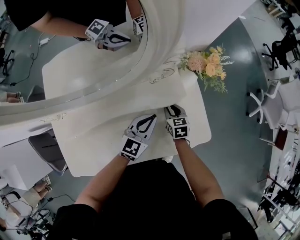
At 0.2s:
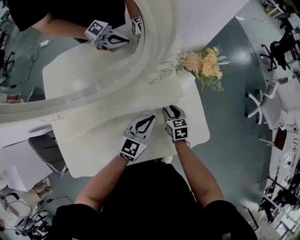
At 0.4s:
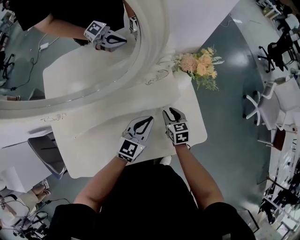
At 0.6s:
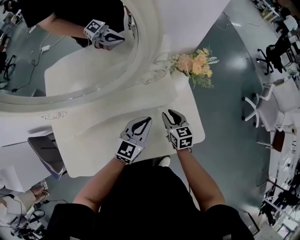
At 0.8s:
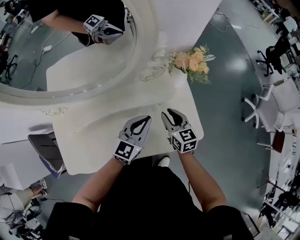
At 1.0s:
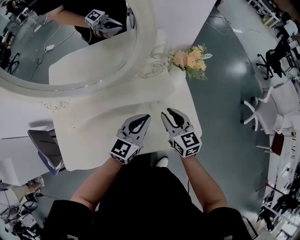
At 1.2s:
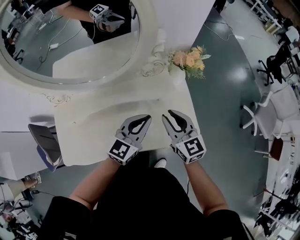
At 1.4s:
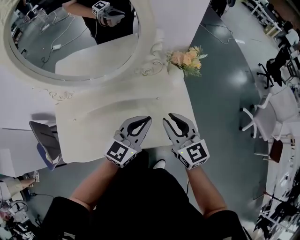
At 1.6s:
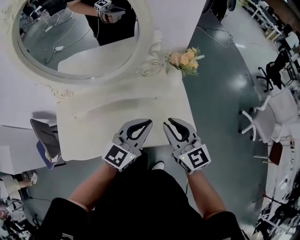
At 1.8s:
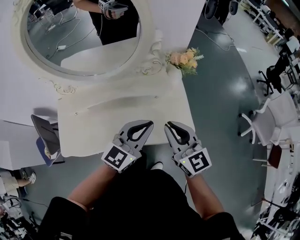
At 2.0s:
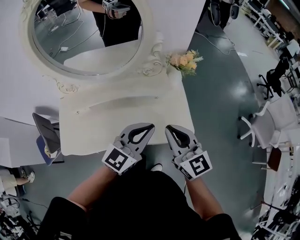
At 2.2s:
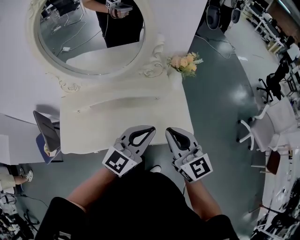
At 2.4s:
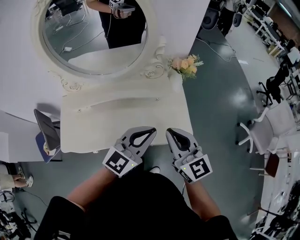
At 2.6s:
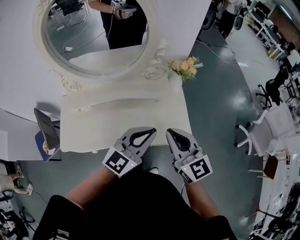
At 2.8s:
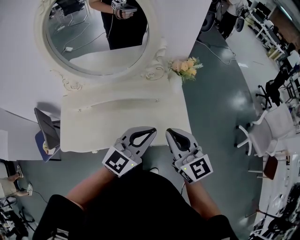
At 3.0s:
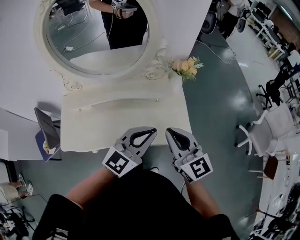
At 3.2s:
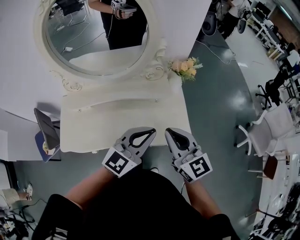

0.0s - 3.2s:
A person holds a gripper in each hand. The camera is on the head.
0.0s - 1.6s: The left gripper goes roughly 25 cm upward and backward. Meanwhile the right gripper moves upward and backward, roughly 40 cm, and angles its fingers upward, by roughly 40 degrees.
1.6s - 3.2s: The two grippers go approximately 10 cm backward and upward.

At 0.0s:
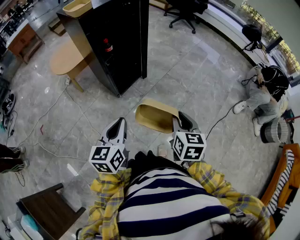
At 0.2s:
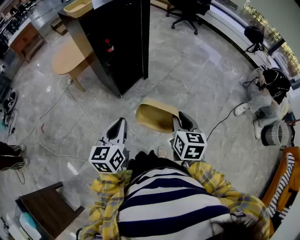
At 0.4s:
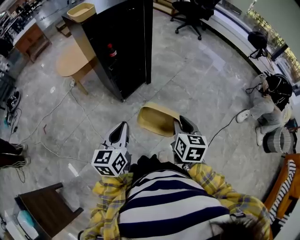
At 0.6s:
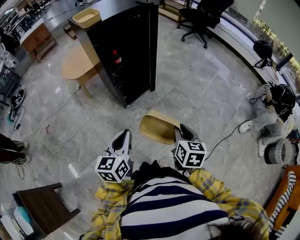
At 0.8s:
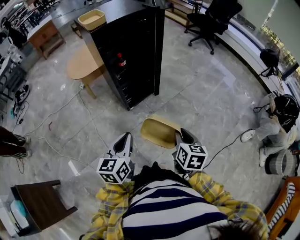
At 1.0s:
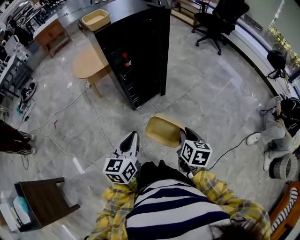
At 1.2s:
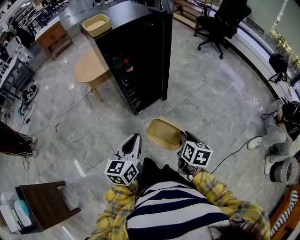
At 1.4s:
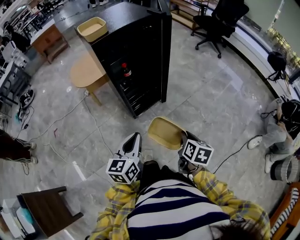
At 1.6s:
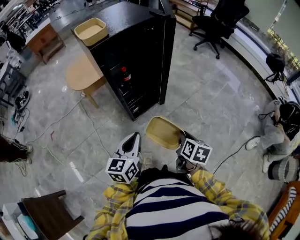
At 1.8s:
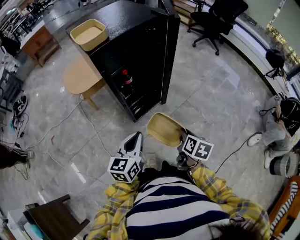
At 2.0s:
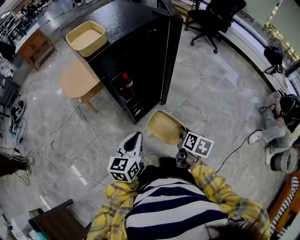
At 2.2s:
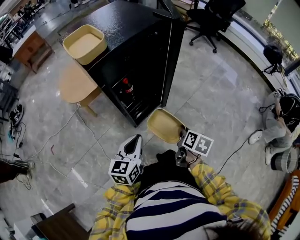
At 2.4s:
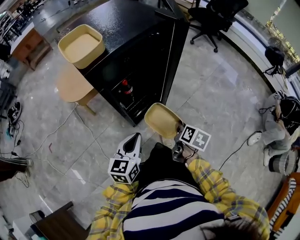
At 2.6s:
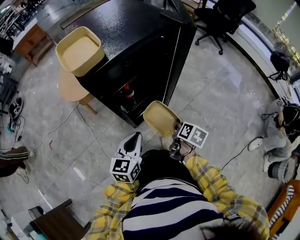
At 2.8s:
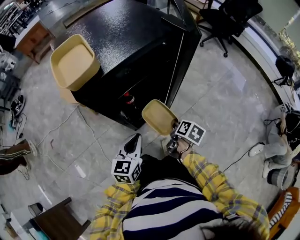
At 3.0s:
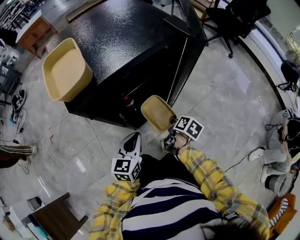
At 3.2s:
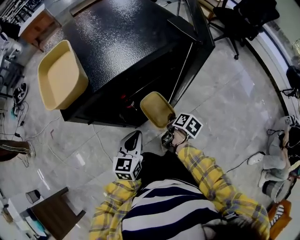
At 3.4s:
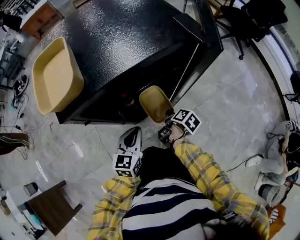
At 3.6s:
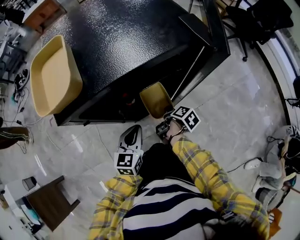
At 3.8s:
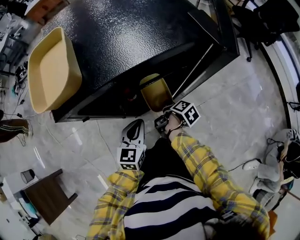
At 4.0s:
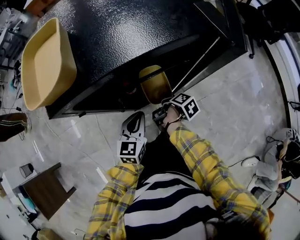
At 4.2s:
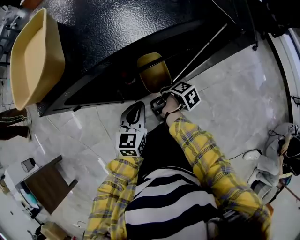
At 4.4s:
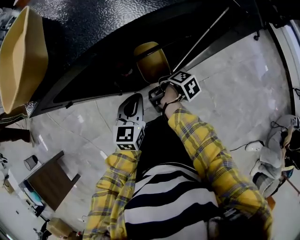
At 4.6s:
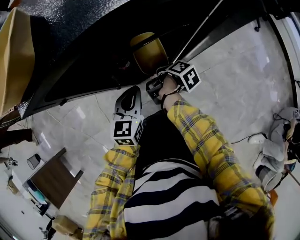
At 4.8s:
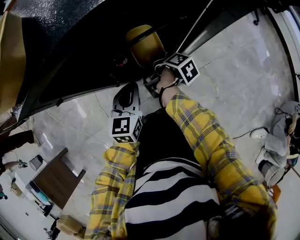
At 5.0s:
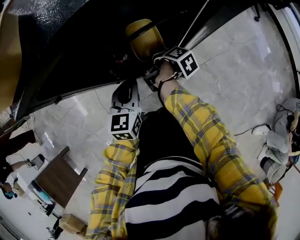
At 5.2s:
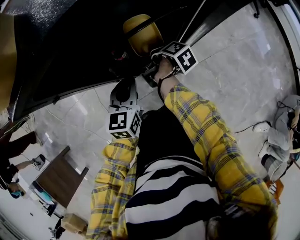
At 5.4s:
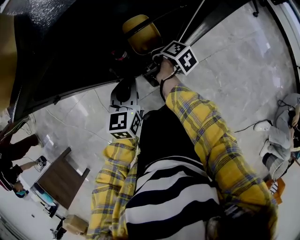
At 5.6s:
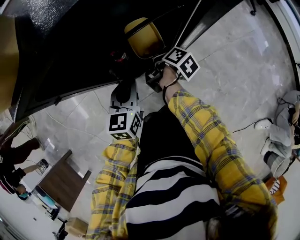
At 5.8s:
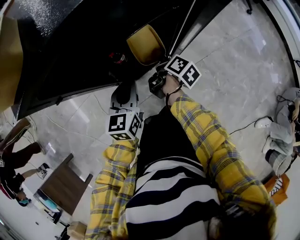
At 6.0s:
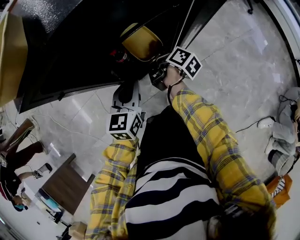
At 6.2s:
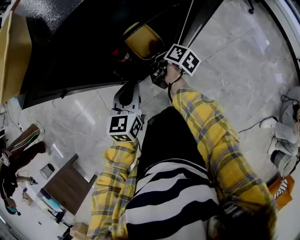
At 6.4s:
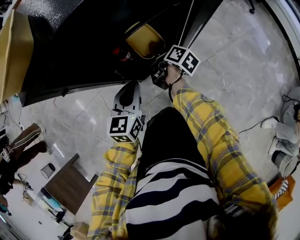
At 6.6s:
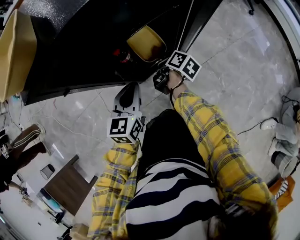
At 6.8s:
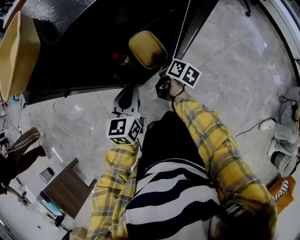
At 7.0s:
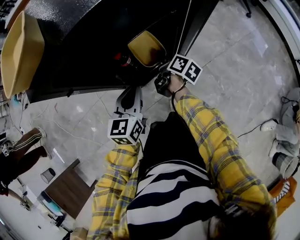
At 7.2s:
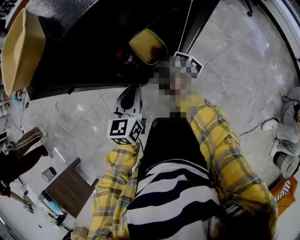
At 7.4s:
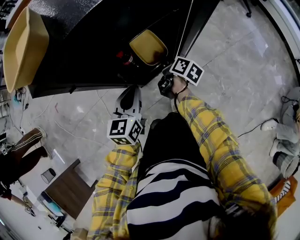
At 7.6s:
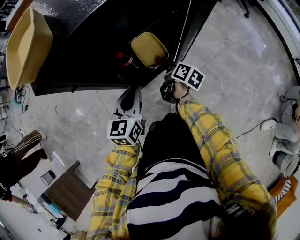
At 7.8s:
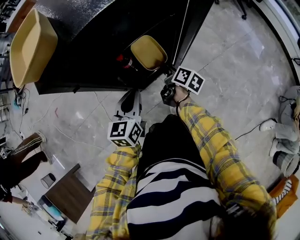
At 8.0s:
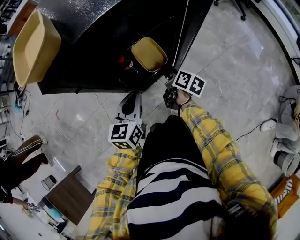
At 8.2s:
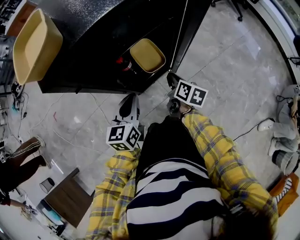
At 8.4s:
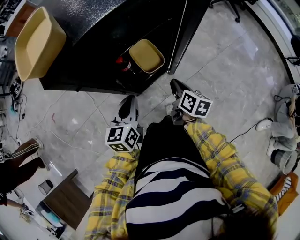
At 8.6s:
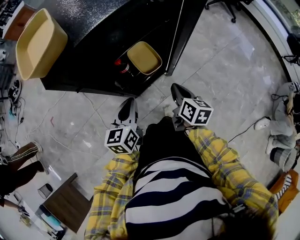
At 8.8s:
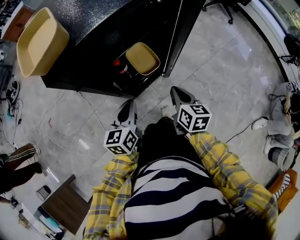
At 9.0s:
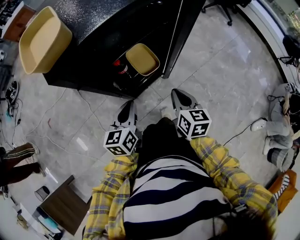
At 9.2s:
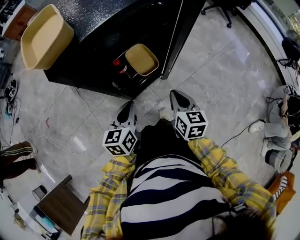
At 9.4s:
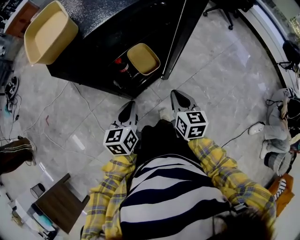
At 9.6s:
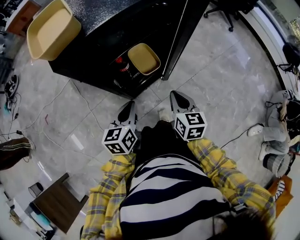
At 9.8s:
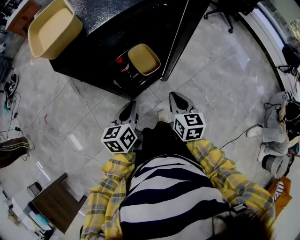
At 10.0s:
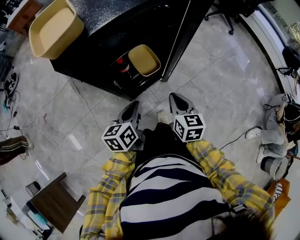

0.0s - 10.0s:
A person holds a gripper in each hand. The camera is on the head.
0.0s - 1.4s: The left gripper moves forward, about 10 cm; the right gripper heads forward and downward, covering some 15 cm, and swivels some 20 degrees.
1.4s - 2.8s: The grippers both shift forward by roughly 20 cm. The right gripper changes its angle by approximately 20 degrees.
2.8s - 4.2s: The left gripper travels forward and downward by roughly 10 cm, while the right gripper goes some 15 cm forward, to the left and downward, and swivels approximately 20 degrees.
4.2s - 5.8s: The grippers move only a little.
5.8s - 7.2s: The grippers stay close to where they were, moving slightly.
7.2s - 8.6s: The right gripper goes roughly 15 cm backward and upward, changes its angle by approximately 30 degrees, and closes its fingers.
8.6s - 10.0s: The right gripper changes place by approximately 5 cm, and swivels roughly 30 degrees.

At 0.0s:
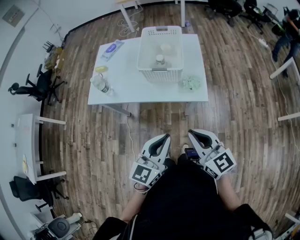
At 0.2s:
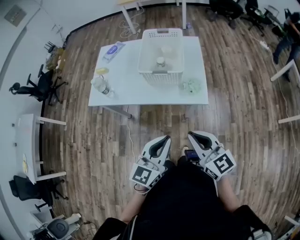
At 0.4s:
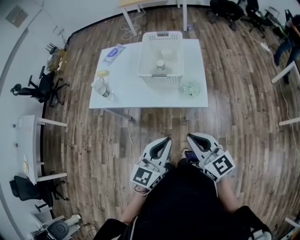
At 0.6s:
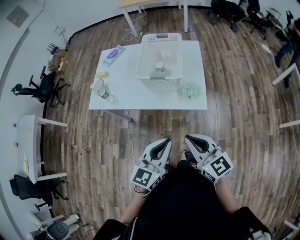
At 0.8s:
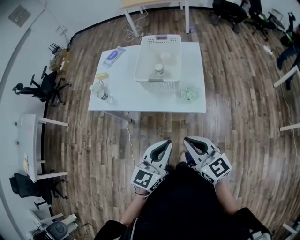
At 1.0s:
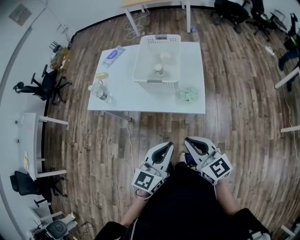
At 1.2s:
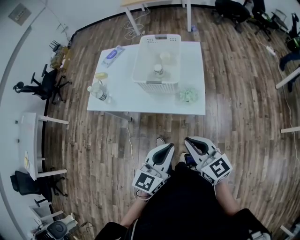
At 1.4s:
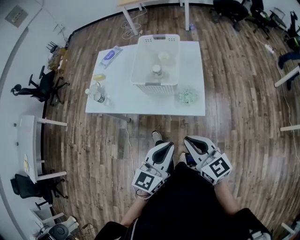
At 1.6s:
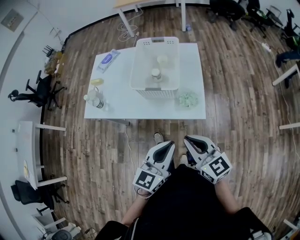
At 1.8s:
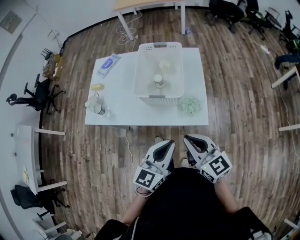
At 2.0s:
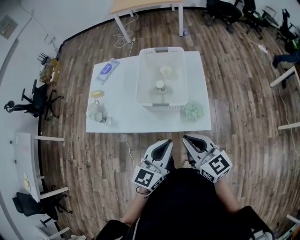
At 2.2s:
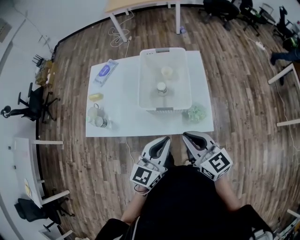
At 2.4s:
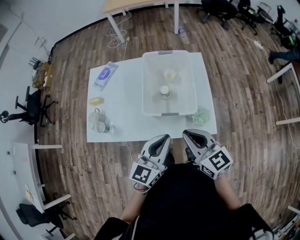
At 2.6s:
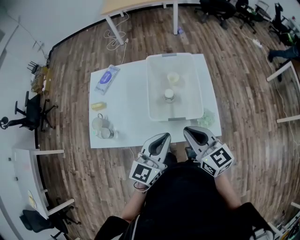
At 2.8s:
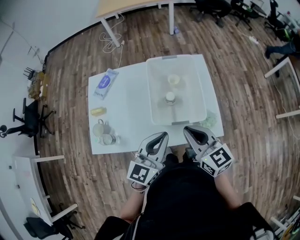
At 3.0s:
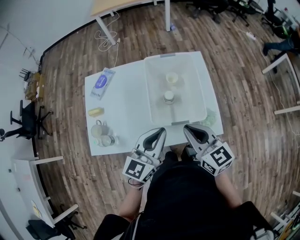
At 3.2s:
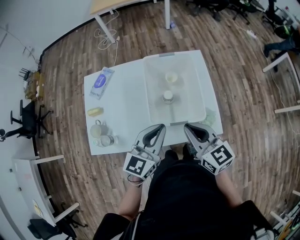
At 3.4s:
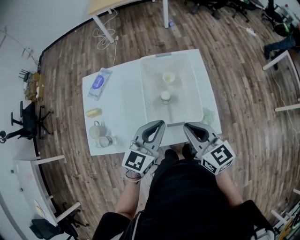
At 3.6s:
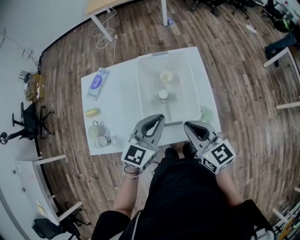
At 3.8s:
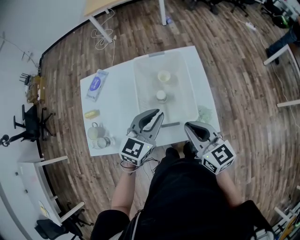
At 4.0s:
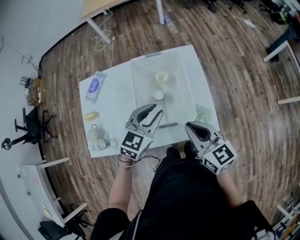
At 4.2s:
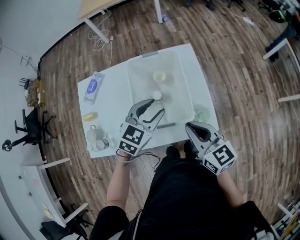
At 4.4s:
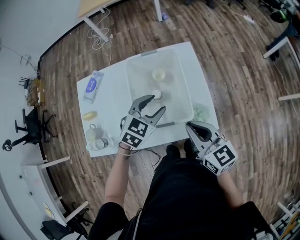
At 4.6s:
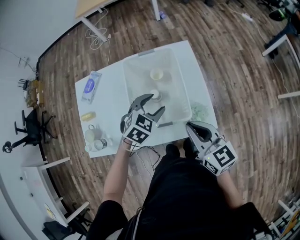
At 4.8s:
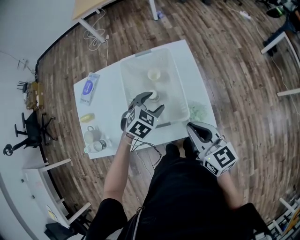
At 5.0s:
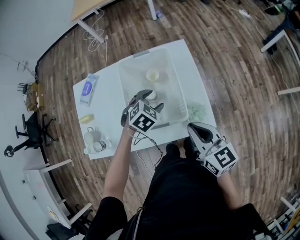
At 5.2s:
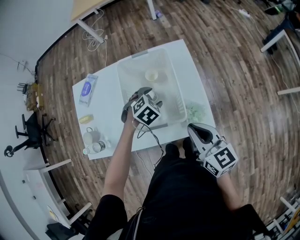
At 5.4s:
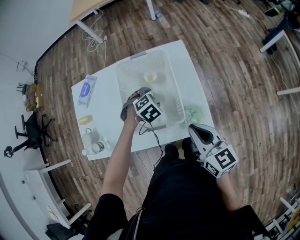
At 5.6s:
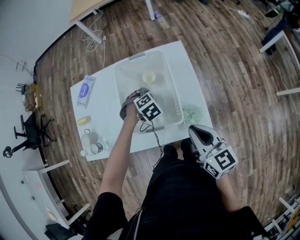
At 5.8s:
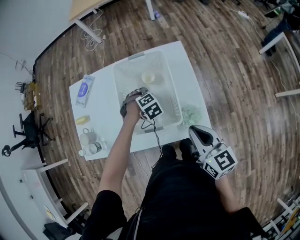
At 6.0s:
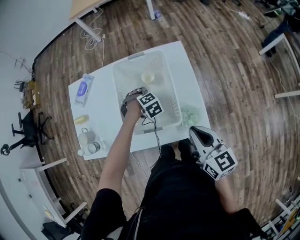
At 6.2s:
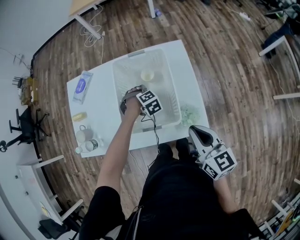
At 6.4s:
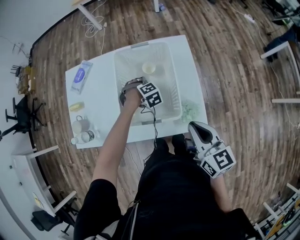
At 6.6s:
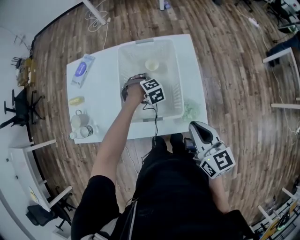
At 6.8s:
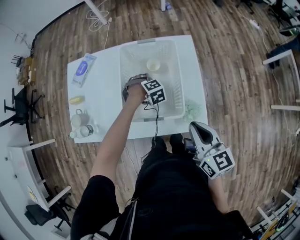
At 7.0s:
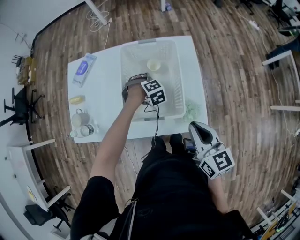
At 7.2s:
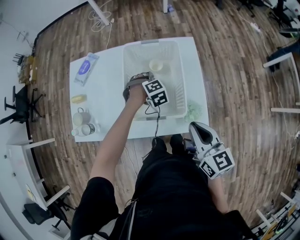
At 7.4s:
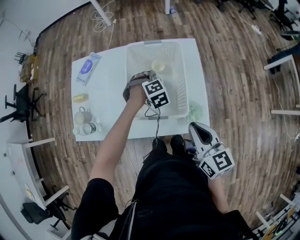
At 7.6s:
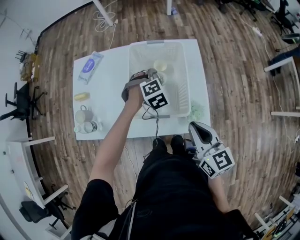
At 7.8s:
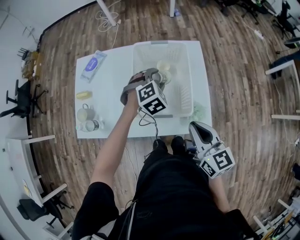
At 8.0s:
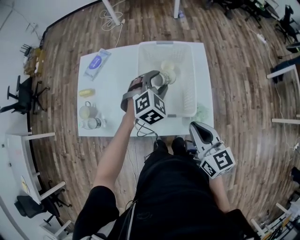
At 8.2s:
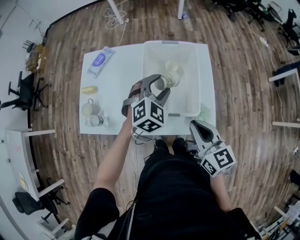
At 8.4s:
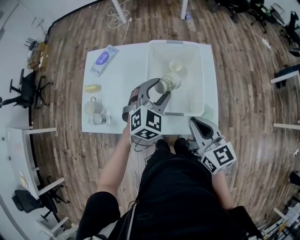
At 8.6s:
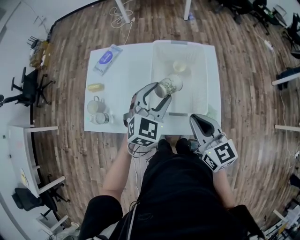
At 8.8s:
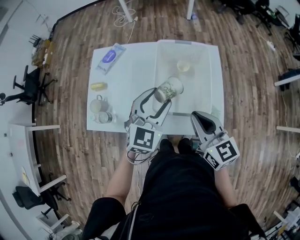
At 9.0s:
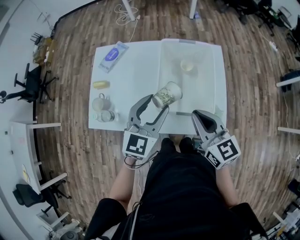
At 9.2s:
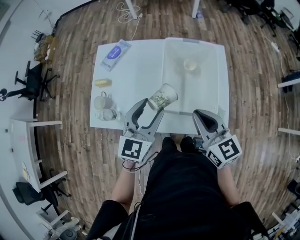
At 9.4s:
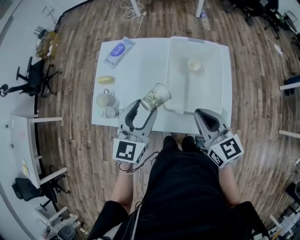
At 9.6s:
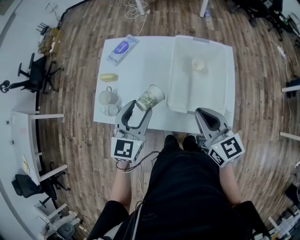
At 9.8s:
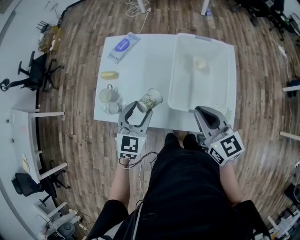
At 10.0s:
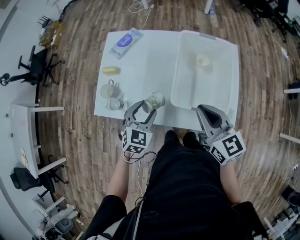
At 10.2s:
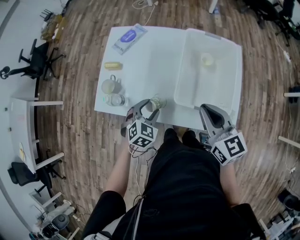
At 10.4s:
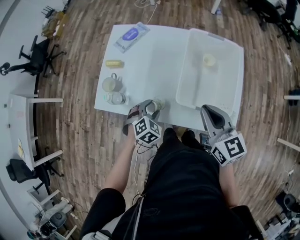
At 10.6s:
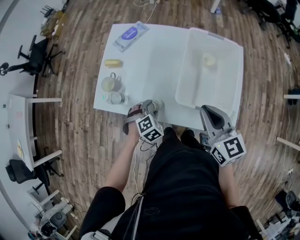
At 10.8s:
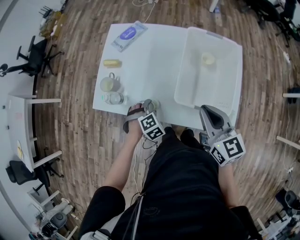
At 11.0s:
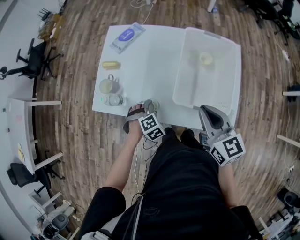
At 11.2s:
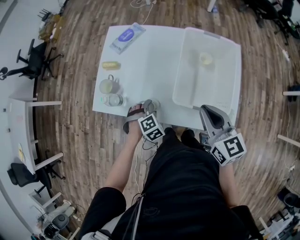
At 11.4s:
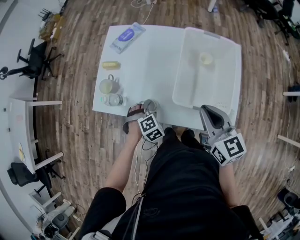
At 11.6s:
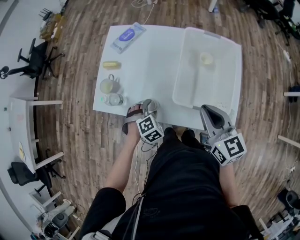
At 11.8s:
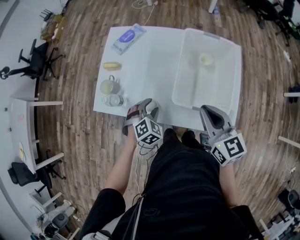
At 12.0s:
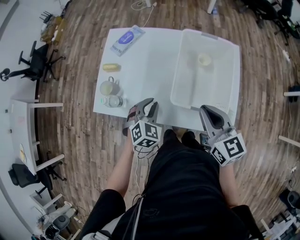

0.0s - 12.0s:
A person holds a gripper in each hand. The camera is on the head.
0.0s - 1.6s: The left gripper goes approximately 10 cm forward and to the right, while the right gripper is displaced forward by approximately 10 cm.
1.6s - 3.0s: Both grippers travel together forward and to the left, roughly 25 cm.
3.0s - 4.4s: The right gripper is displaced to the right by approximately 10 cm; the left gripper shifts some 15 cm forward, to the right and downward, tilts its fingers approximately 30 degrees downward, and opens.
4.4s - 6.0s: The left gripper is displaced downward by roughly 20 cm, and tilts its fingers approximately 40 degrees downward; the right gripper changes place by about 5 cm.
6.0s - 7.6s: The left gripper goes some 10 cm upward.
7.6s - 9.0s: The left gripper heads upward, to the left and backward, covering approximately 25 cm, and angles its fingers upward, by roughly 50 degrees; the right gripper is displaced to the left by roughly 10 cm.
9.0s - 10.4s: The left gripper heads downward and to the left, covering roughly 25 cm, and angles its fingers downward, by about 40 degrees.
10.4s - 12.0s: The left gripper is displaced upward by roughly 5 cm, and closes its fingers.
